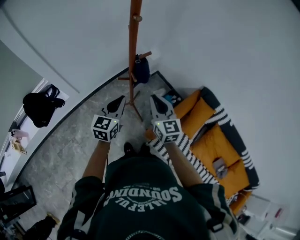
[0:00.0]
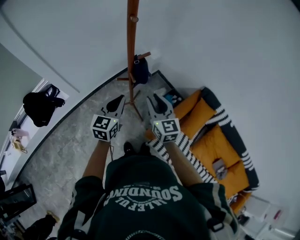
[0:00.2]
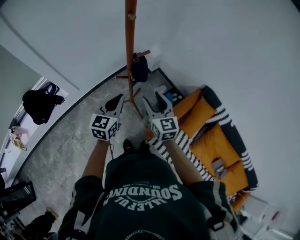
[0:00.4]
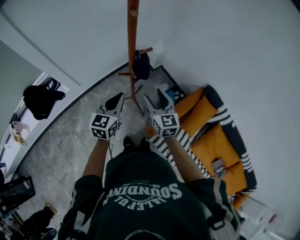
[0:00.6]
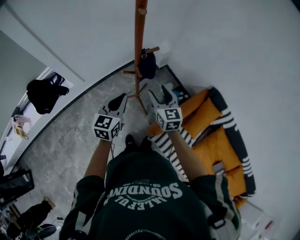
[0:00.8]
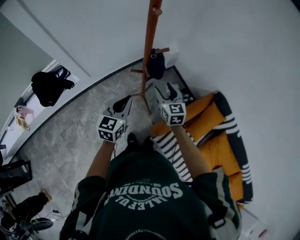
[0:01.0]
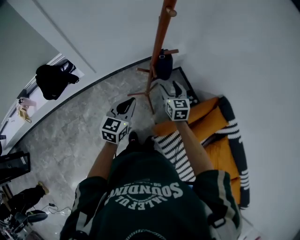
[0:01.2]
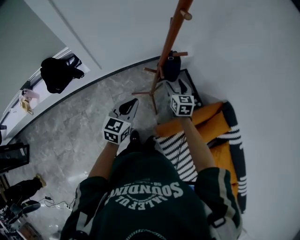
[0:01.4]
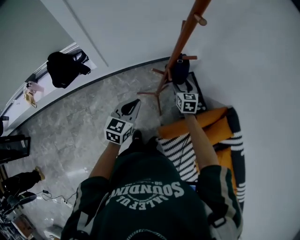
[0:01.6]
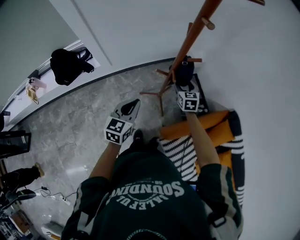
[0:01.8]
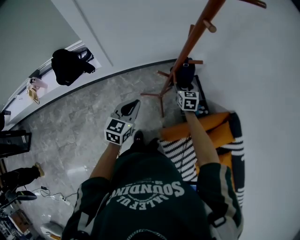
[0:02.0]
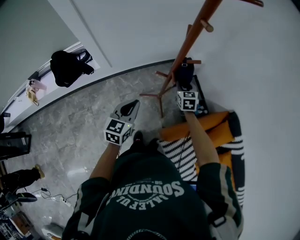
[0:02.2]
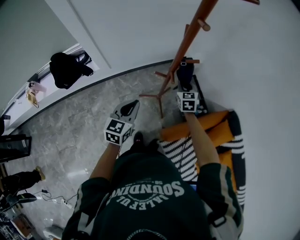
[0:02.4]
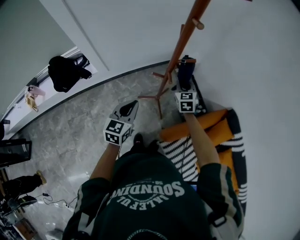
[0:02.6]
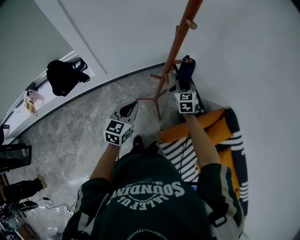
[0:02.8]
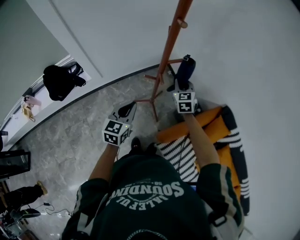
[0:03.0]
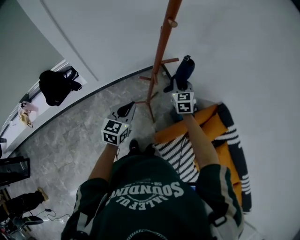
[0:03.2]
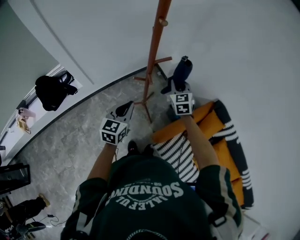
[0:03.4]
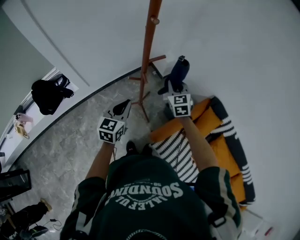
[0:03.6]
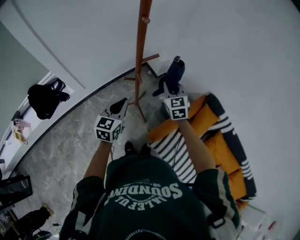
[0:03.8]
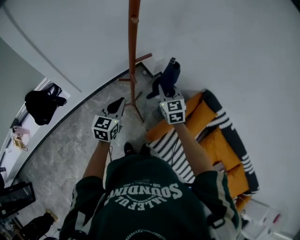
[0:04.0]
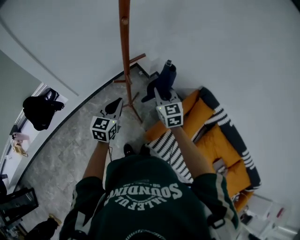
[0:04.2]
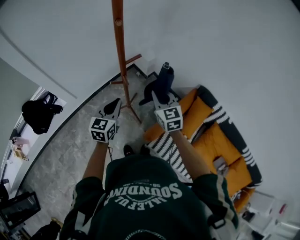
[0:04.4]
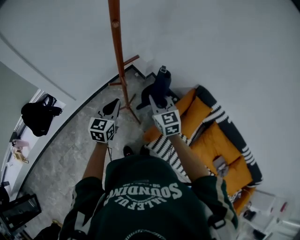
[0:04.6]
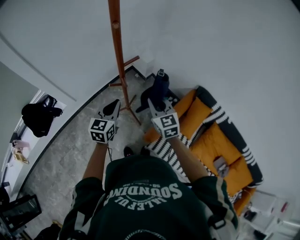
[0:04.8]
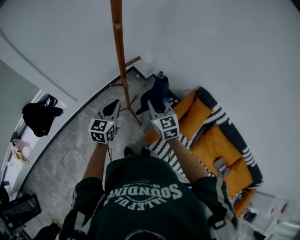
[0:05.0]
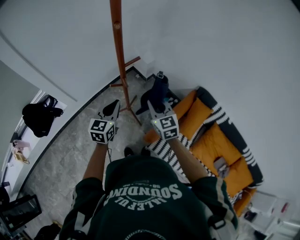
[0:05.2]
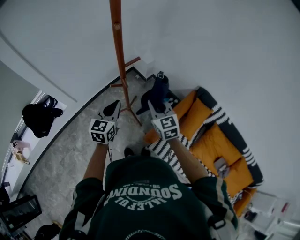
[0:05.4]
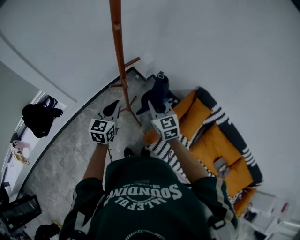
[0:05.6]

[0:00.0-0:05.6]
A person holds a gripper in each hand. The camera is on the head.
0:00.0 to 0:01.4: The right gripper moves downward and forward, approximately 20 cm, rotates about 20 degrees, and opens. Meanwhile the left gripper changes place by approximately 5 cm.
0:01.4 to 0:02.8: The right gripper closes.
0:02.8 to 0:04.2: The right gripper moves backward, upward and to the right, about 15 cm. Meanwhile the left gripper shifts approximately 5 cm to the right.
0:04.2 to 0:05.6: The grippers make only small movements.

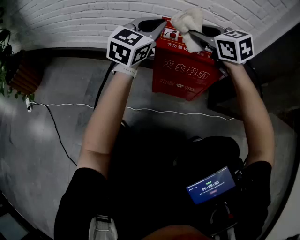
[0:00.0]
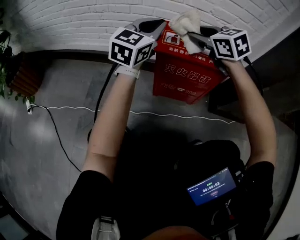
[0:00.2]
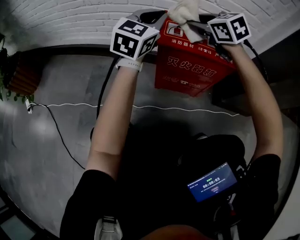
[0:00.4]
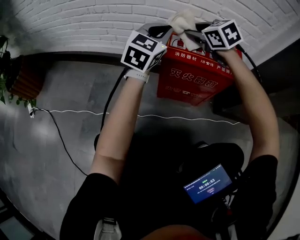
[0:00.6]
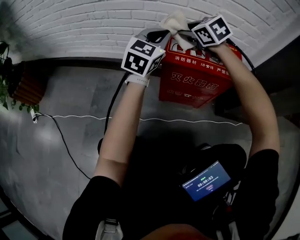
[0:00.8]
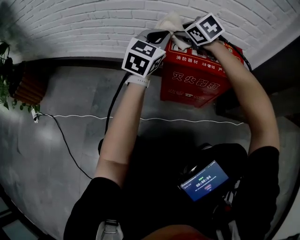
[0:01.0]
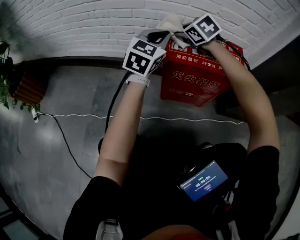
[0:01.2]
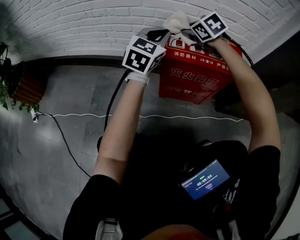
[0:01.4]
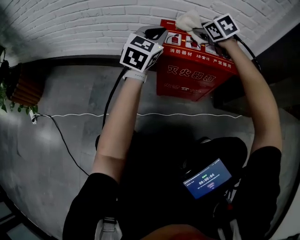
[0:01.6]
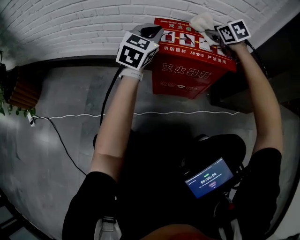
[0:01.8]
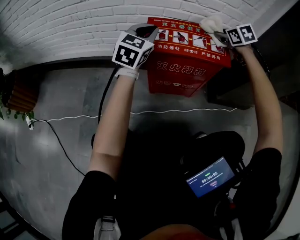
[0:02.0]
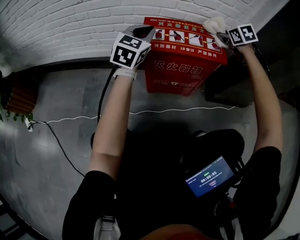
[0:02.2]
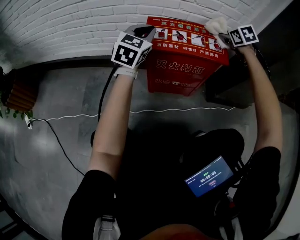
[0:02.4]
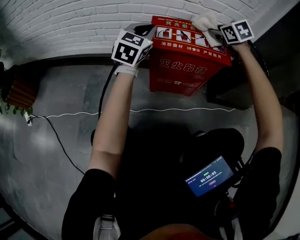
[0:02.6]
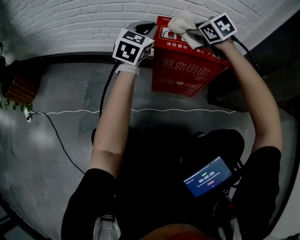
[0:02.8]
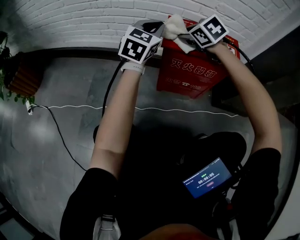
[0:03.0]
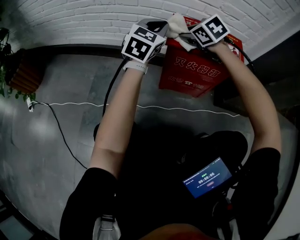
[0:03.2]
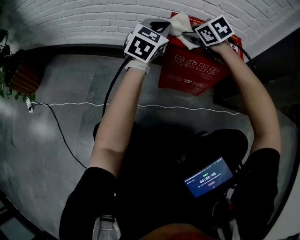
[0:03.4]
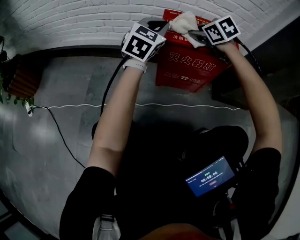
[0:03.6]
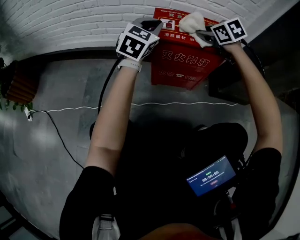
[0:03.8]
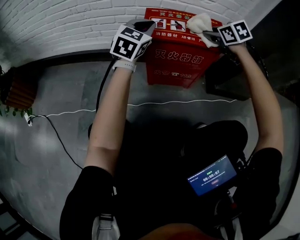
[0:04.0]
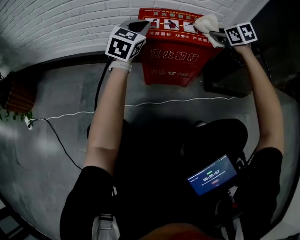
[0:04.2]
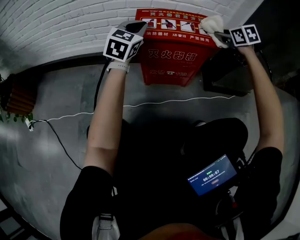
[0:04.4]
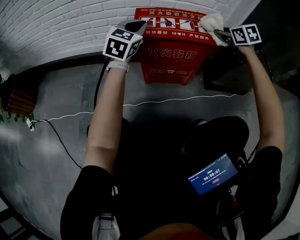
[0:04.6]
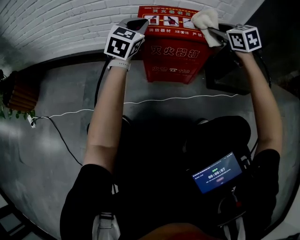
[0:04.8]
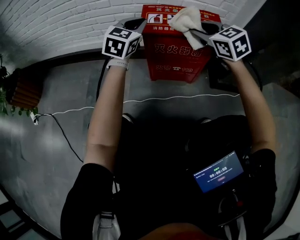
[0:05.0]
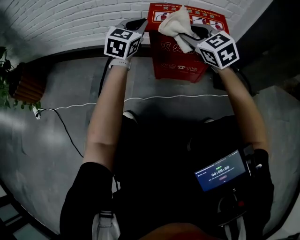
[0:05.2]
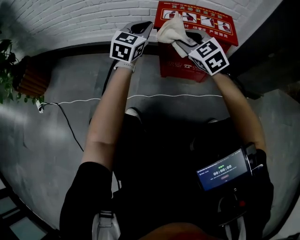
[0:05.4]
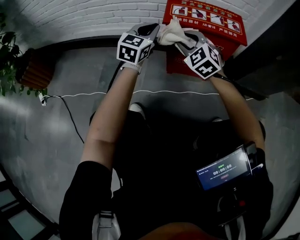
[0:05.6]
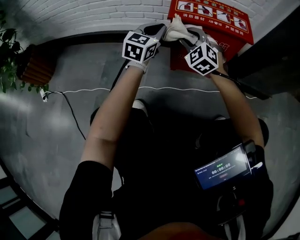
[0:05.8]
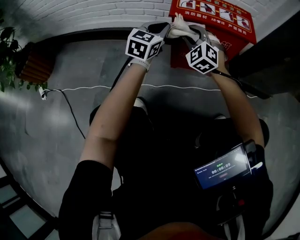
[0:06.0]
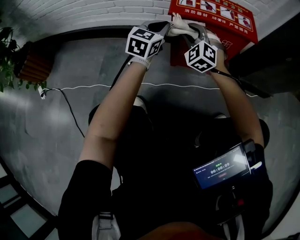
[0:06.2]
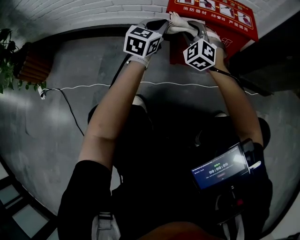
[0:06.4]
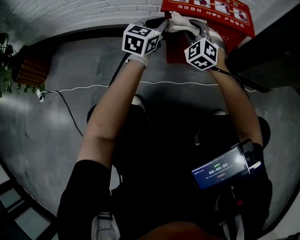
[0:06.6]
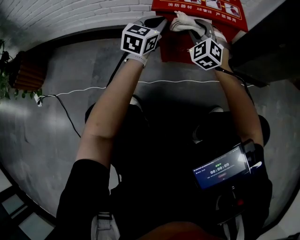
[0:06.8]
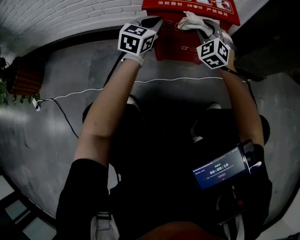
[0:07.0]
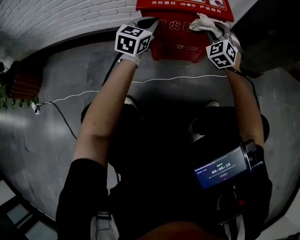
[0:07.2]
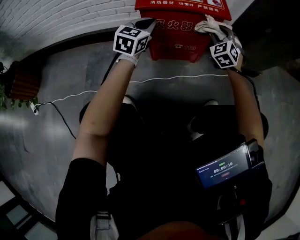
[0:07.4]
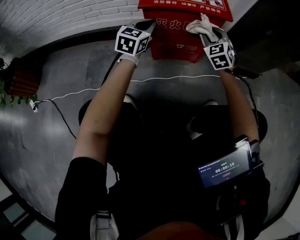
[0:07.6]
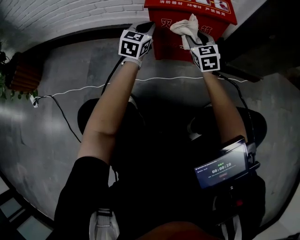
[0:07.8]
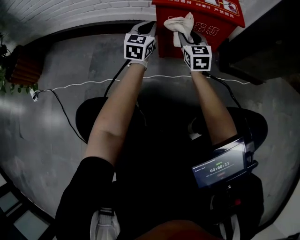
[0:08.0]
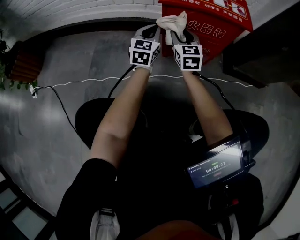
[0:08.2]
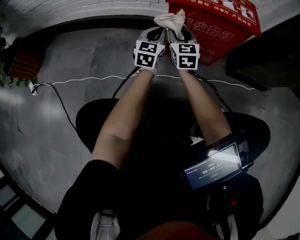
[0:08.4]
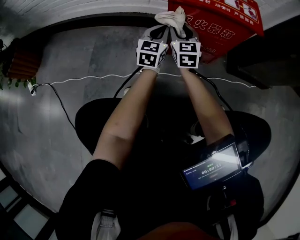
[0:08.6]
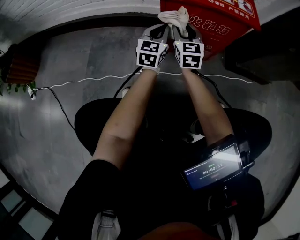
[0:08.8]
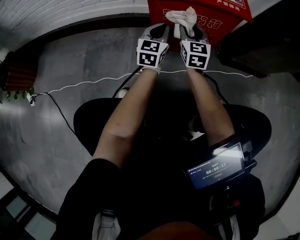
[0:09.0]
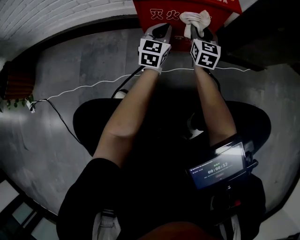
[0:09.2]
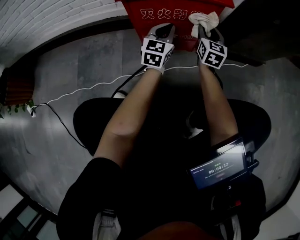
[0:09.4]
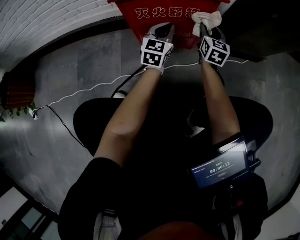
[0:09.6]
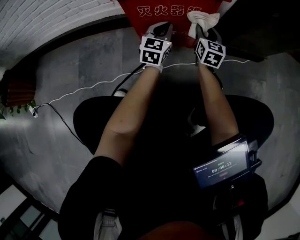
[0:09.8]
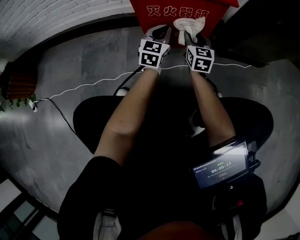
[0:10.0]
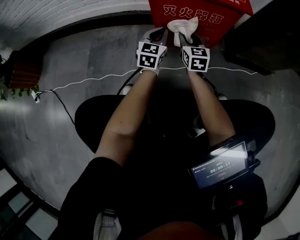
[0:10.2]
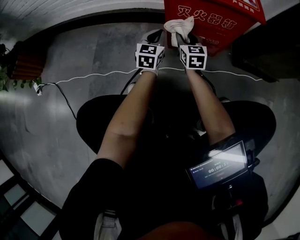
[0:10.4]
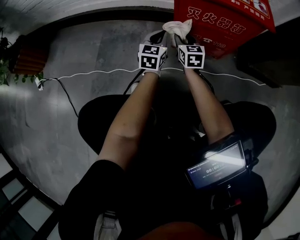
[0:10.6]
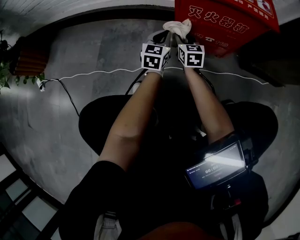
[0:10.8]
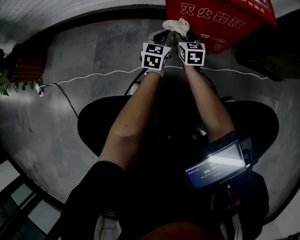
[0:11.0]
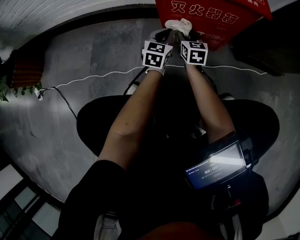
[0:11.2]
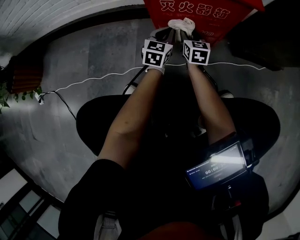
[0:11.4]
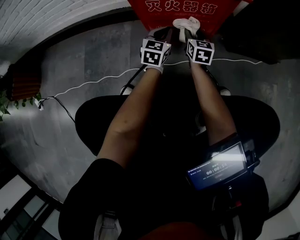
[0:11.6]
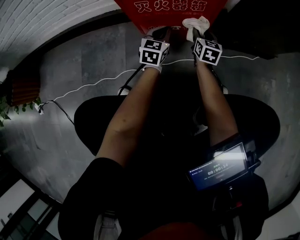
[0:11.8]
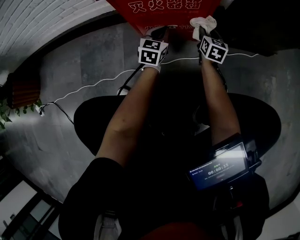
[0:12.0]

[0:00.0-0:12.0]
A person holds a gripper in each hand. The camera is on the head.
0:00.0 to 0:01.6: The left gripper travels downward and forward by roughly 10 cm. Meanwhile the right gripper travels forward, downward and to the right by roughly 15 cm, and swivels some 20 degrees.
0:01.6 to 0:03.0: The right gripper shifts about 10 cm backward, and goes to the right and returns, roughly 20 cm each way.
0:03.0 to 0:04.4: The right gripper shifts approximately 30 cm to the right, and rotates about 30 degrees. Meanwhile the left gripper heads to the right, covering some 5 cm.
0:04.4 to 0:06.0: The right gripper travels to the left by roughly 30 cm, and twists approximately 50 degrees counterclockwise, seen from behind, while the left gripper is displaced downward and to the left by approximately 10 cm.
0:06.0 to 0:07.6: The right gripper heads to the right, covering some 20 cm, and swivels some 30 degrees. Meanwhile the left gripper is displaced to the right by about 5 cm.
0:07.6 to 0:09.0: The right gripper goes about 10 cm to the left and downward, and swivels roughly 40 degrees. Meanwhile the left gripper travels downward by some 10 cm.
0:09.0 to 0:10.4: The right gripper goes some 10 cm downward, and reaches about 20 cm to the right, then returns, while the left gripper travels to the left and downward by approximately 10 cm.
0:10.4 to 0:12.0: The right gripper goes some 25 cm to the right, and swivels approximately 30 degrees, while the left gripper is displaced to the right by approximately 15 cm.

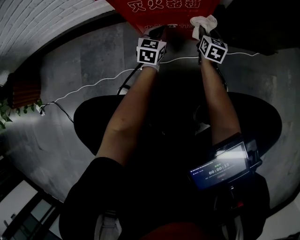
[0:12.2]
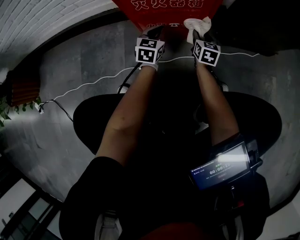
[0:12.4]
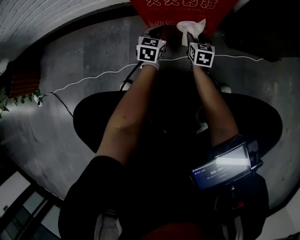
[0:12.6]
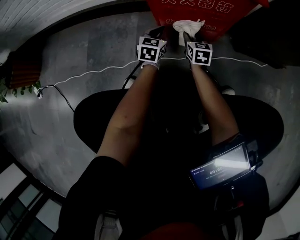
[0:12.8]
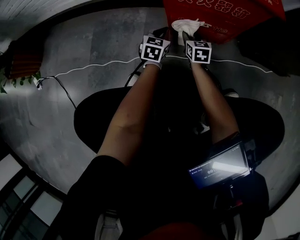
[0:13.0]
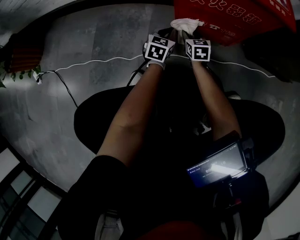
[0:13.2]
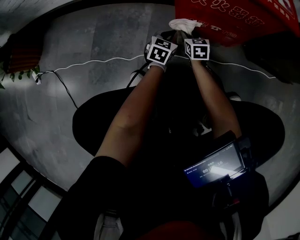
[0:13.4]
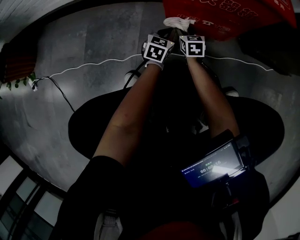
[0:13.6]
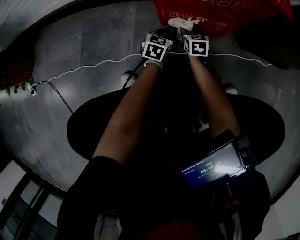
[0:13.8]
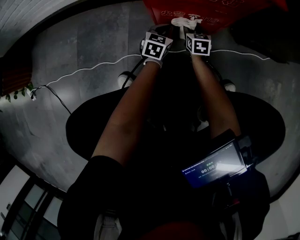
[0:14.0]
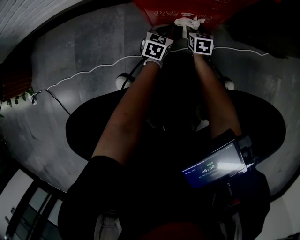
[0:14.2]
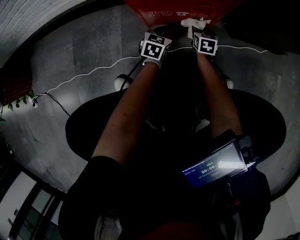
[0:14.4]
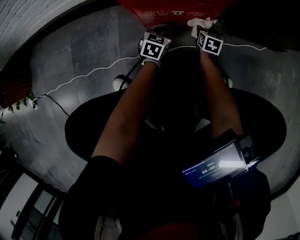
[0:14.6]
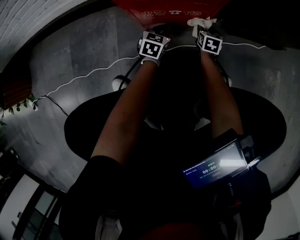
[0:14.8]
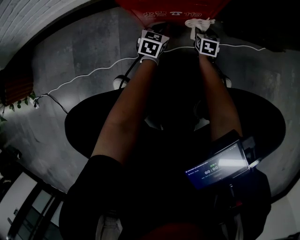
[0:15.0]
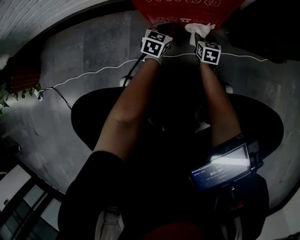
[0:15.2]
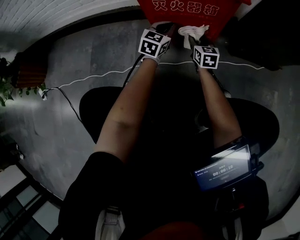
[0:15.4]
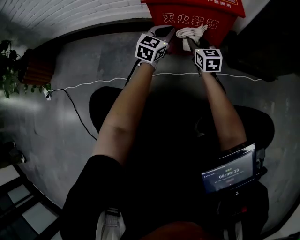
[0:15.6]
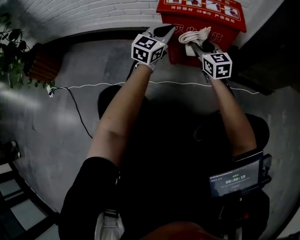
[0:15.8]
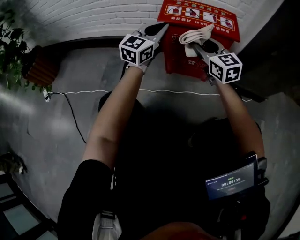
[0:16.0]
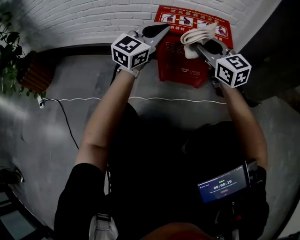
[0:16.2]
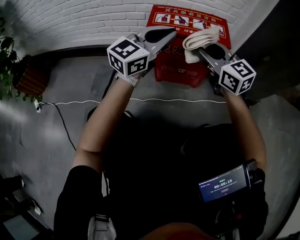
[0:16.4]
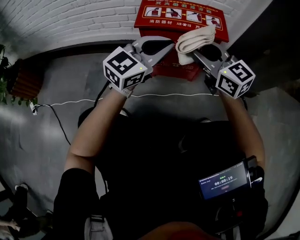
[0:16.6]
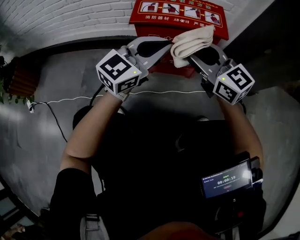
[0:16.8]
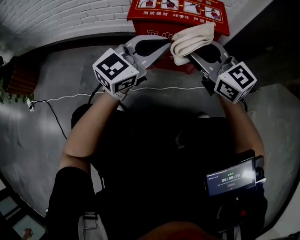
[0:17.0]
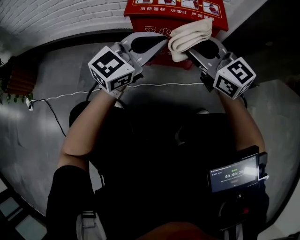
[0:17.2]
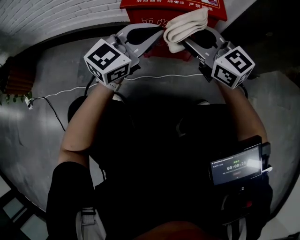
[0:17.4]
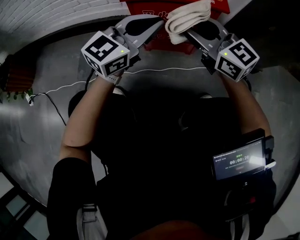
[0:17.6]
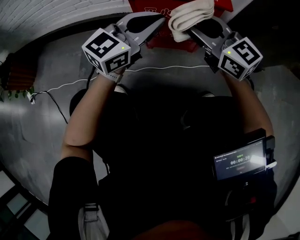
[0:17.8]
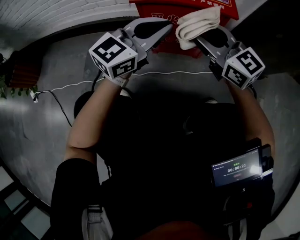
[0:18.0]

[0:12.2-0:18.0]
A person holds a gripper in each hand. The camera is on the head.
0:12.2 to 0:13.6: The right gripper moves to the left and downward, about 25 cm, and turns by roughly 30 degrees. Meanwhile the left gripper heads to the left and downward, covering some 15 cm.
0:13.6 to 0:15.0: The left gripper is displaced to the right by roughly 10 cm, while the right gripper moves to the right, about 20 cm, and swivels about 20 degrees.
0:15.0 to 0:16.6: Both grippers travel together upward, approximately 50 cm. The left gripper tilts its fingers about 30 degrees upward; the right gripper angles its fingers upward, by about 40 degrees.
0:16.6 to 0:18.0: The grippers make only small movements.
